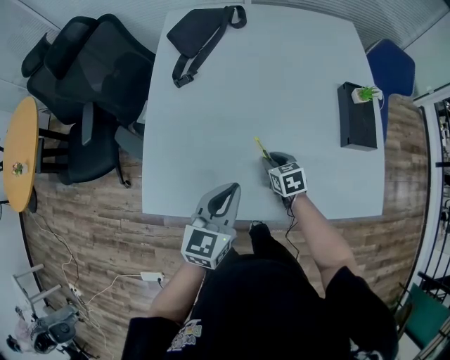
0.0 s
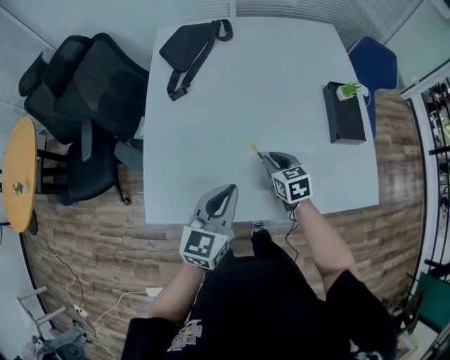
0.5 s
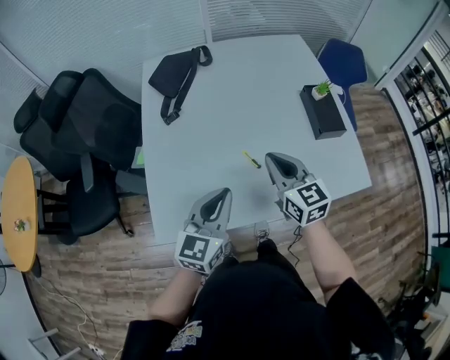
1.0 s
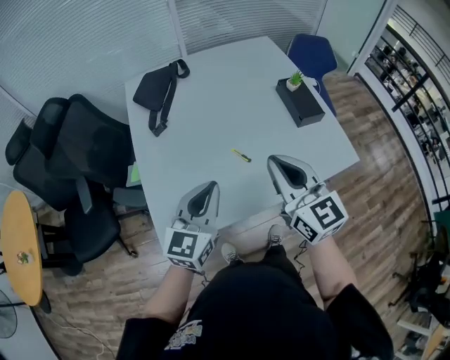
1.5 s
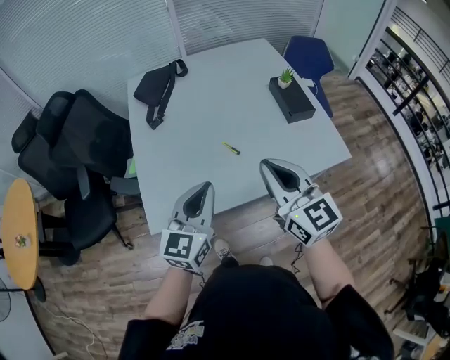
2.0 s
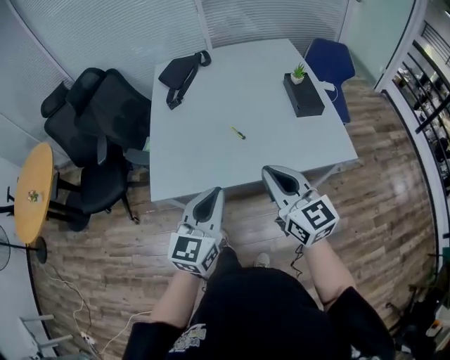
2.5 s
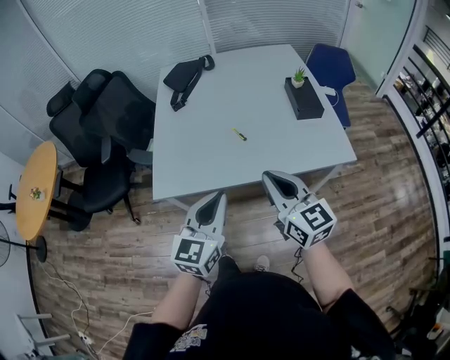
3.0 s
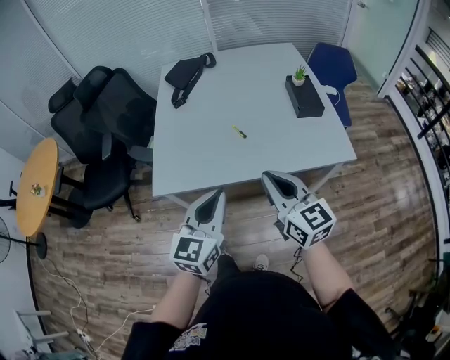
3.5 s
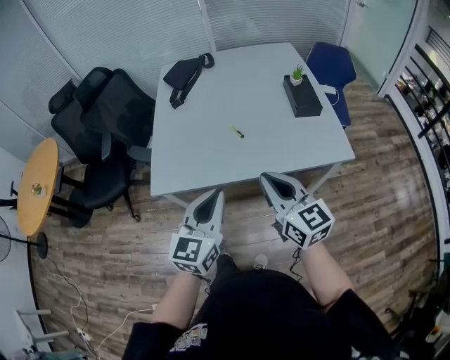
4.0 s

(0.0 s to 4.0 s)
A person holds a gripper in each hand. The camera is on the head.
0.0 s - 2.0 s: The left gripper goes approximately 15 cm upward and backward, and changes its angle by roughly 20 degrees. Meanwhile the right gripper goes roughly 40 cm upward and backward, tips its fingers upward by approximately 50 degrees, and closes.
2.0 s - 4.0 s: The grippers both shift backward by roughly 15 cm.

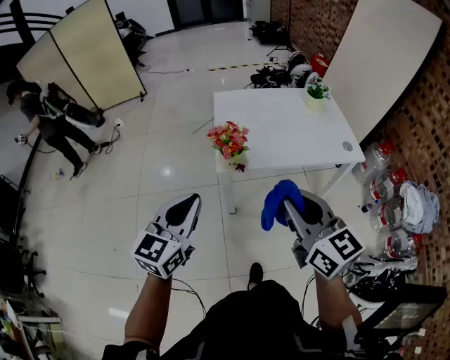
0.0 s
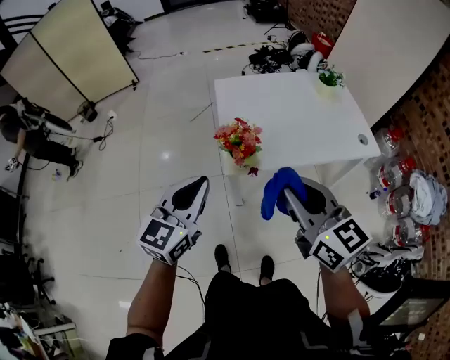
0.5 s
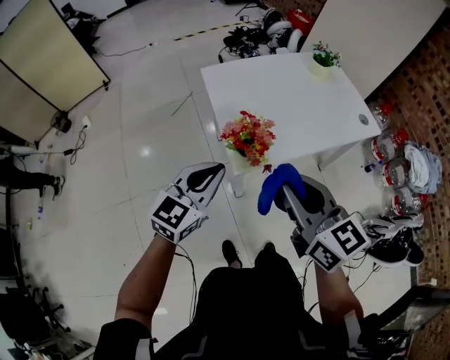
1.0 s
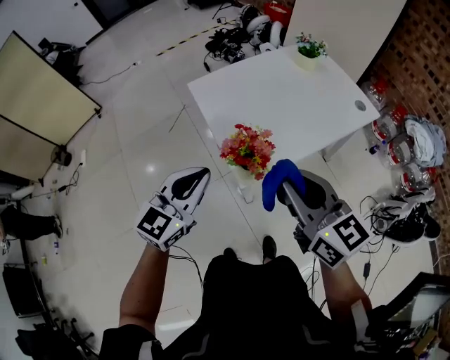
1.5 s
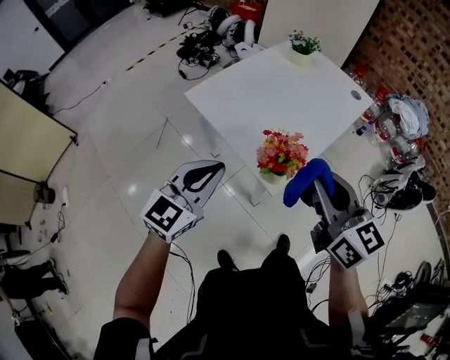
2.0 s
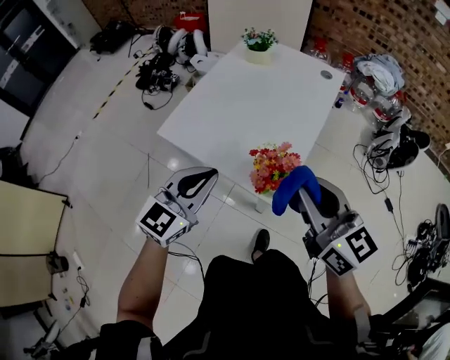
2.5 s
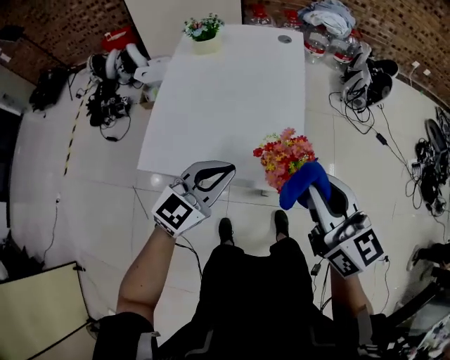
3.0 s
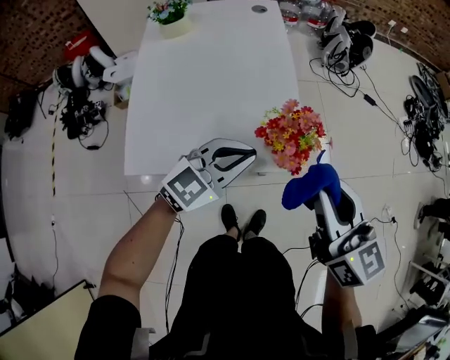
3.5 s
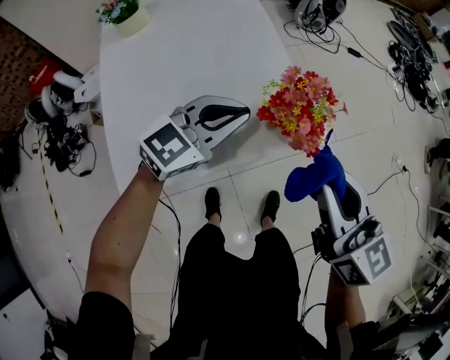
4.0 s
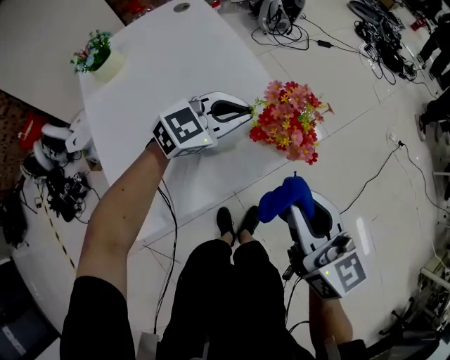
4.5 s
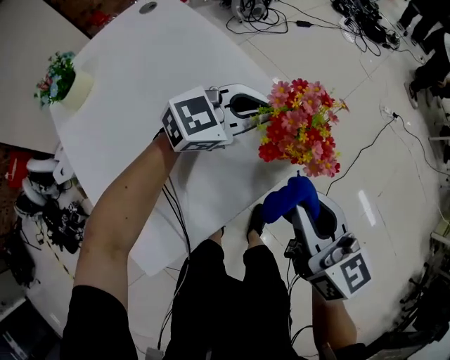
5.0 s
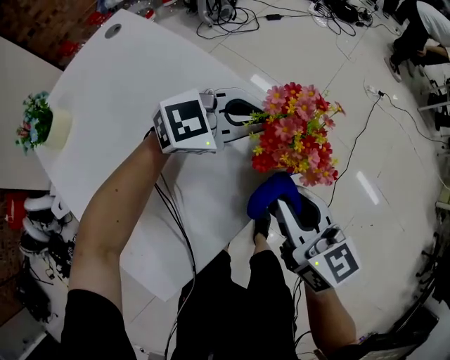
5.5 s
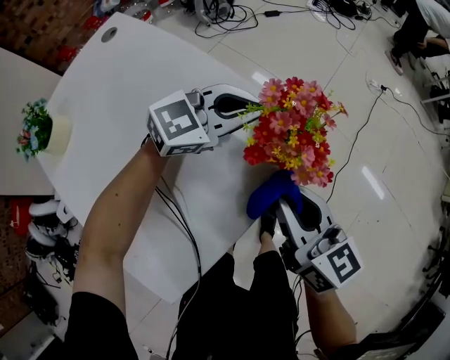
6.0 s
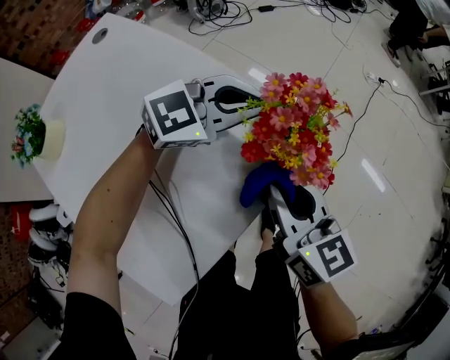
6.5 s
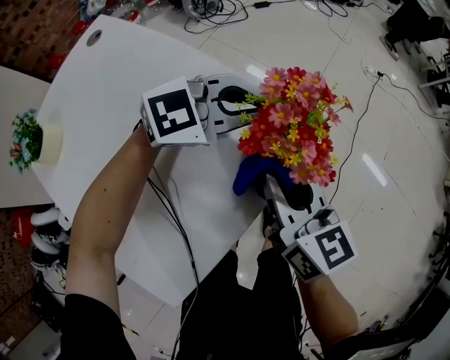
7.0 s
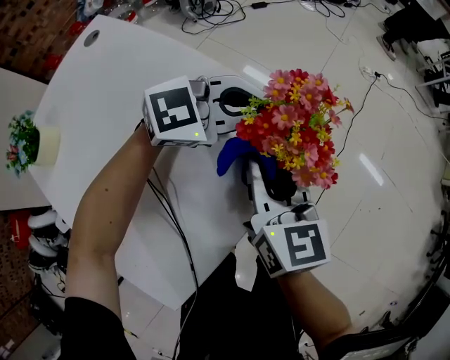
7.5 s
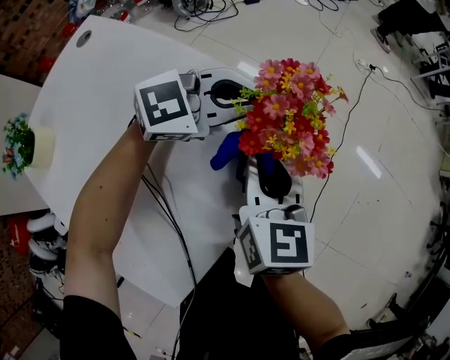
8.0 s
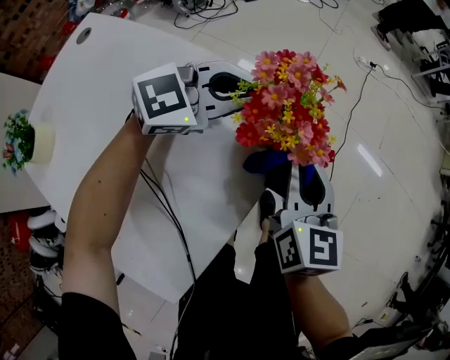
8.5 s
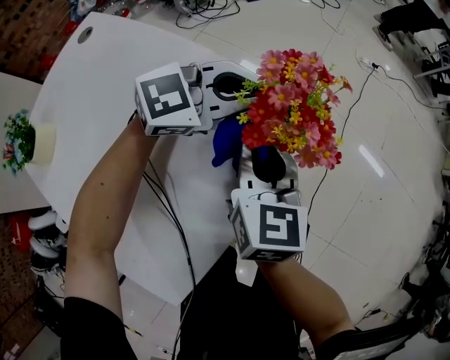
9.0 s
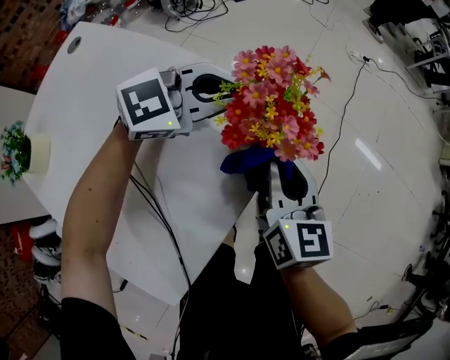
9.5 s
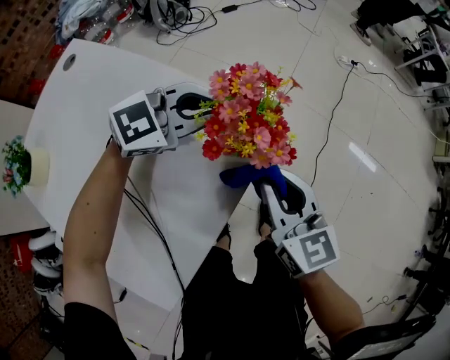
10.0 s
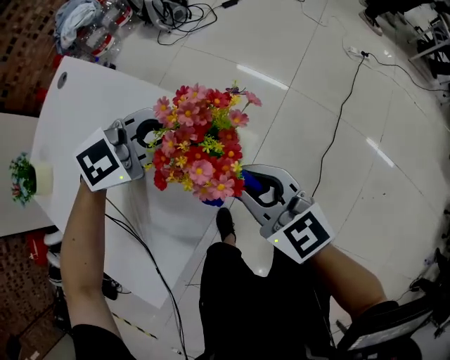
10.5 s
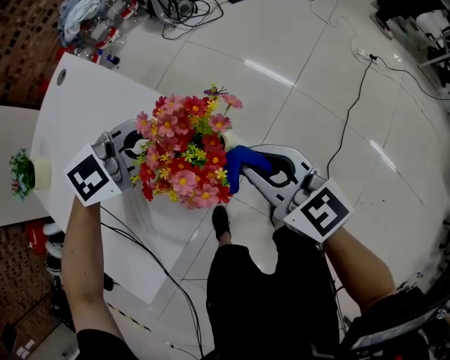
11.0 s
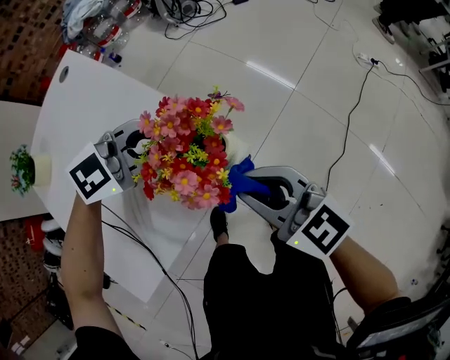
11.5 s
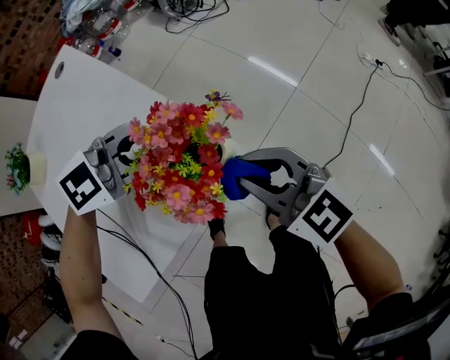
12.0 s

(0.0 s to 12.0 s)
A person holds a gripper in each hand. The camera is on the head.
0.0 s - 2.0 s: The right gripper ends up approximately 30 cm from where it was, and rotates some 40 degrees, while the left gripper ends up roughly 40 cm from where it was, and rotates approximately 50 degrees.
2.0 s - 4.0 s: The left gripper changes place by roughly 25 cm, and turns by approximately 90 degrees, while the right gripper shifts by some 15 cm, and rotates about 70 degrees.
4.0 s - 6.0 s: The left gripper moves some 15 cm, and rotates some 50 degrees. Meanwhile the right gripper shifts approximately 10 cm downward, and turns by some 30 degrees.
6.0 s - 8.0 s: The right gripper heads to the left, covering roughly 5 cm, and turns by some 30 degrees.
8.0 s - 10.0 s: The right gripper moves left and right over some 10 cm, changing direction 2 times.
10.0 s - 12.0 s: The right gripper ends up approximately 10 cm from where it was, and swivels approximately 50 degrees.

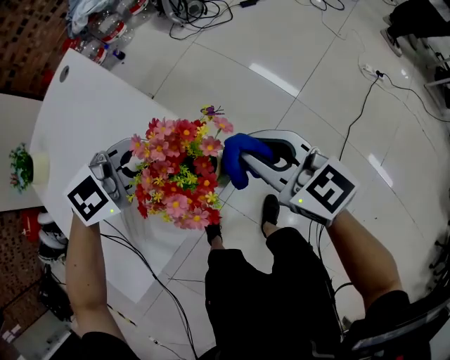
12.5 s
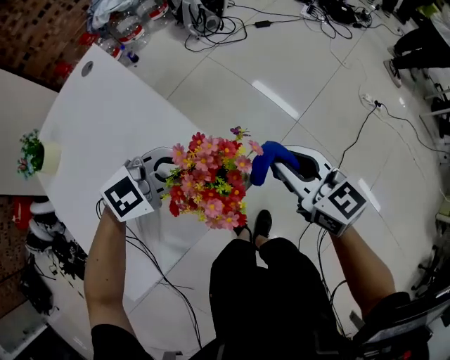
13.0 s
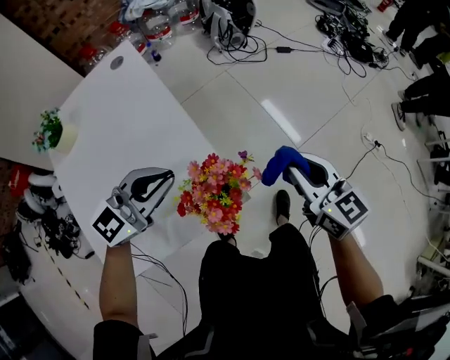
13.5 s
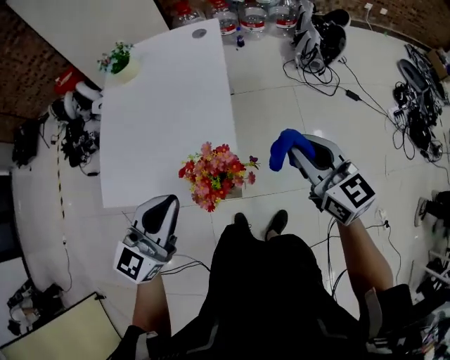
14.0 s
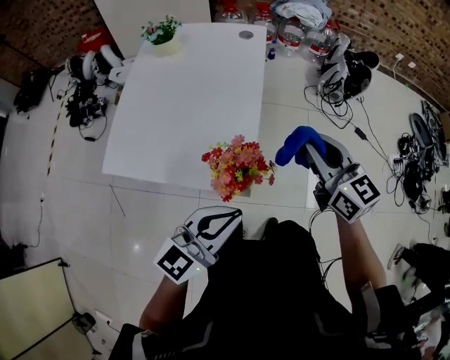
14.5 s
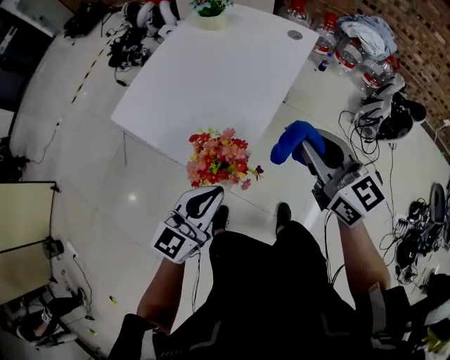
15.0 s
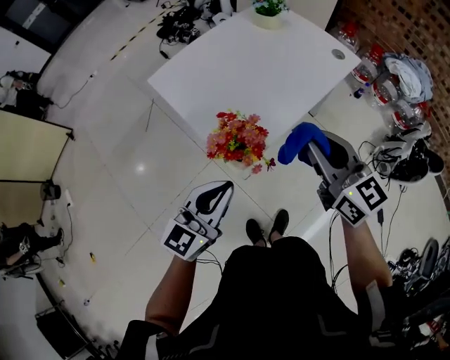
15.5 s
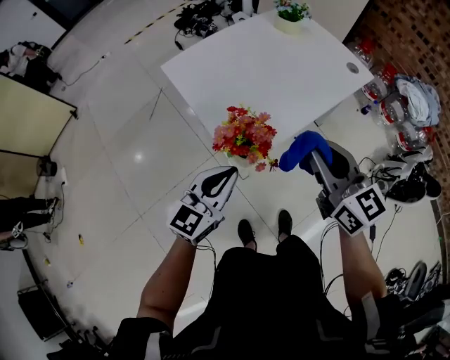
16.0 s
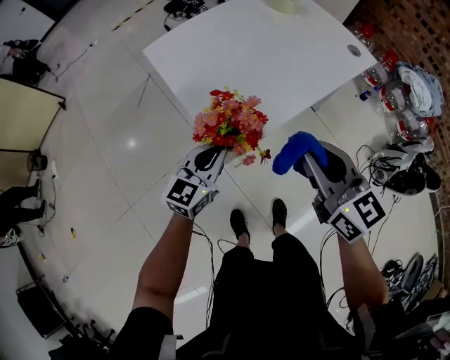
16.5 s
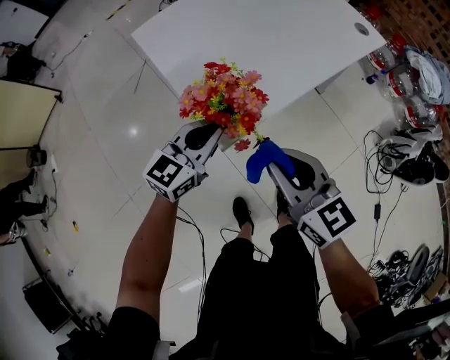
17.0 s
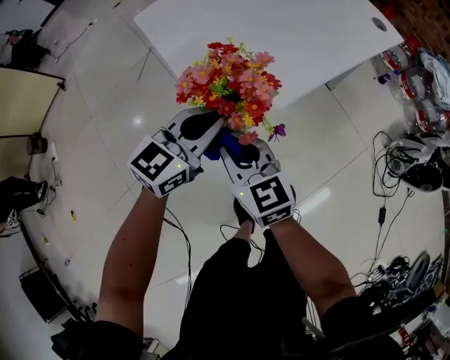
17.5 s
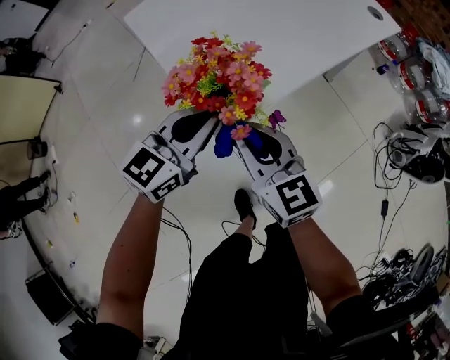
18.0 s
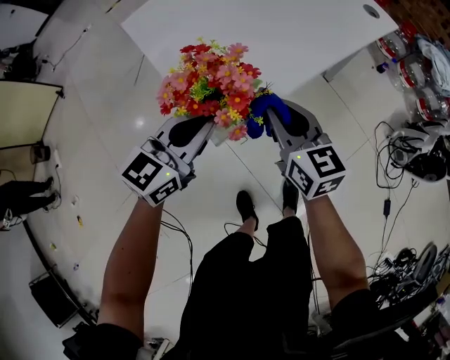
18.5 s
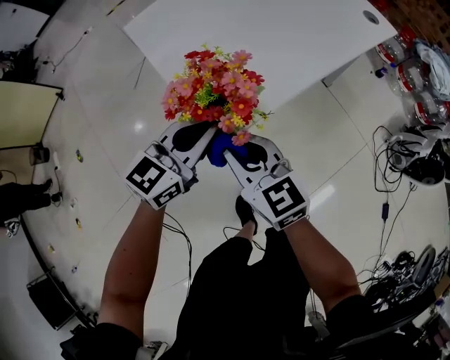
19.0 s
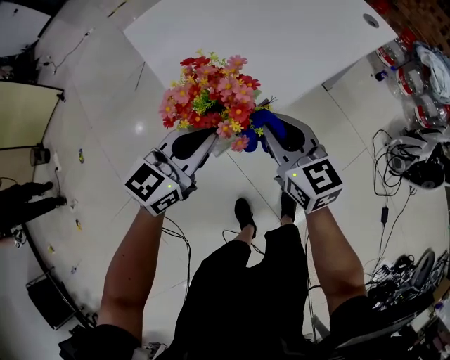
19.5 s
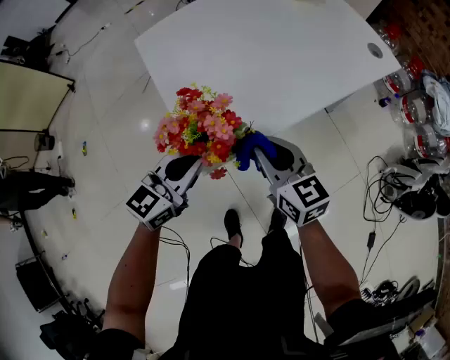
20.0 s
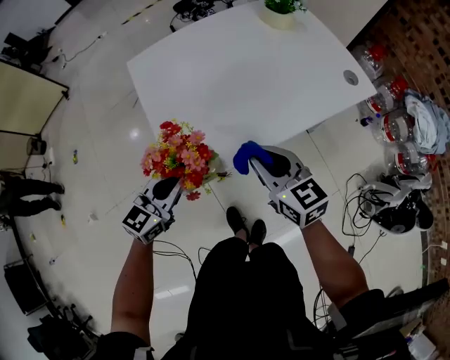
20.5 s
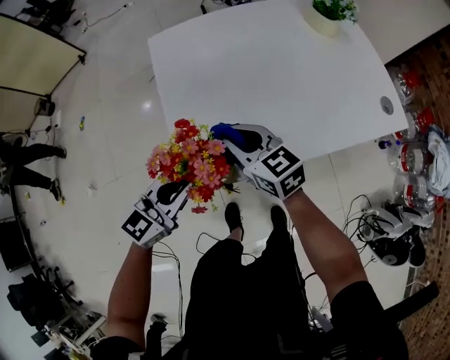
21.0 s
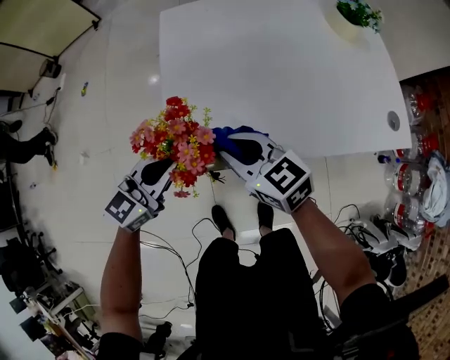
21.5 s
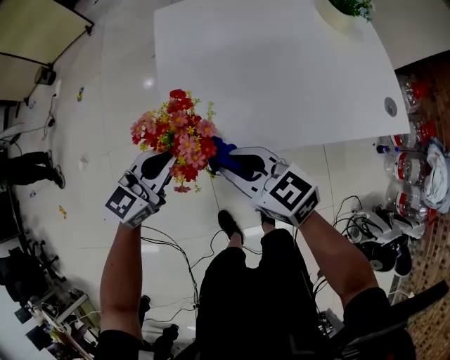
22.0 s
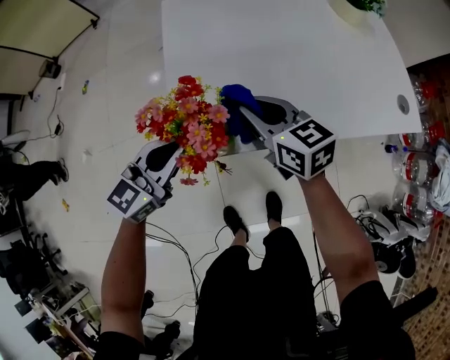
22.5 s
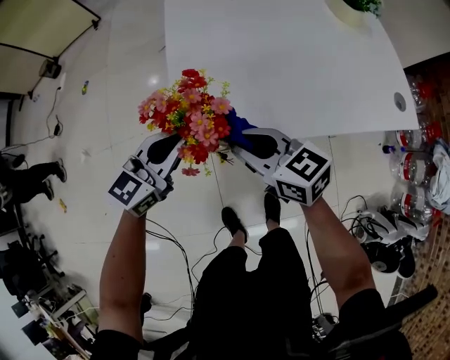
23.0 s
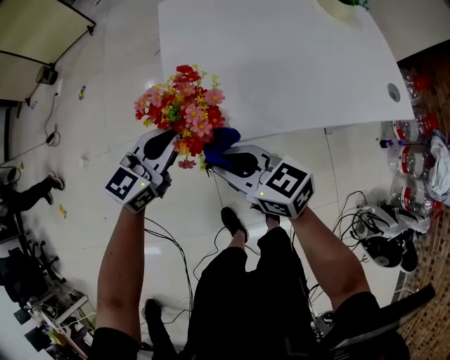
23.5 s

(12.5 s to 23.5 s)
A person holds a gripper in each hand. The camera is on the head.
12.5 s - 14.5 s: The grippers both shift upward by approximately 15 cm. The left gripper changes its angle by approximately 90 degrees, while the right gripper rotates approximately 40 degrees.
14.5 s - 16.0 s: The right gripper turns by some 40 degrees; the left gripper goes roughly 5 cm downward, and changes its angle by about 60 degrees.
16.0 s - 18.0 s: The right gripper shifts approximately 25 cm downward and to the left. Meanwhile the left gripper heads downward and forward, covering about 10 cm.
18.0 s - 20.0 s: The right gripper moves left and right over roughly 10 cm, changing direction 2 times.
20.0 s - 21.5 s: The right gripper swivels some 40 degrees, while the left gripper changes its angle by about 20 degrees.
21.5 s - 23.5 s: The right gripper swings forward and backward, some 15 cm each way, with 2 reversals.
